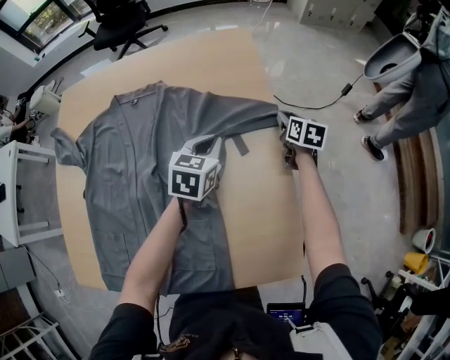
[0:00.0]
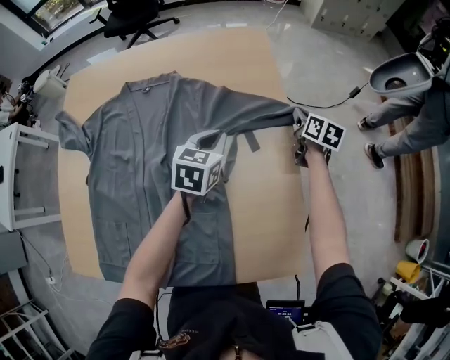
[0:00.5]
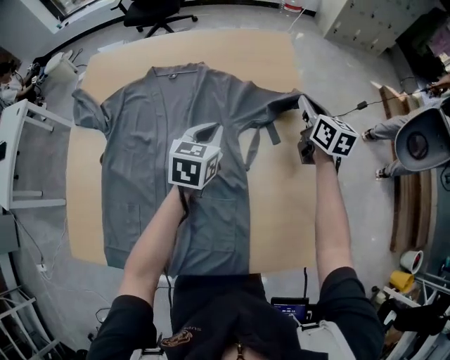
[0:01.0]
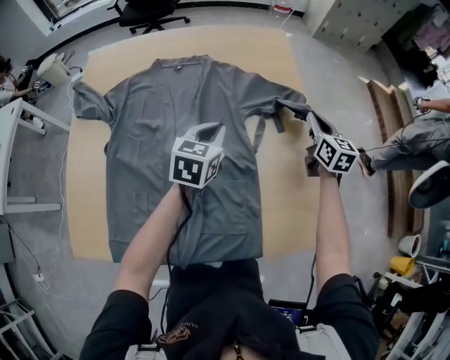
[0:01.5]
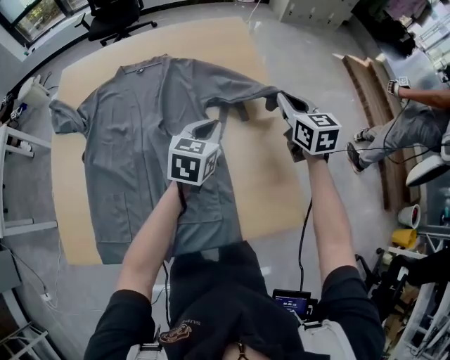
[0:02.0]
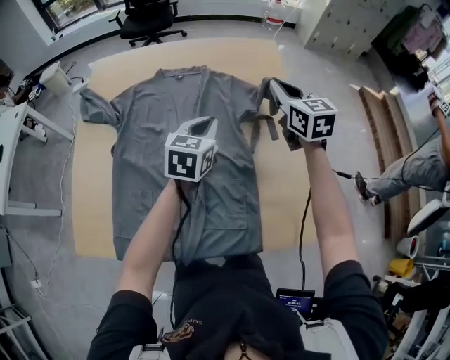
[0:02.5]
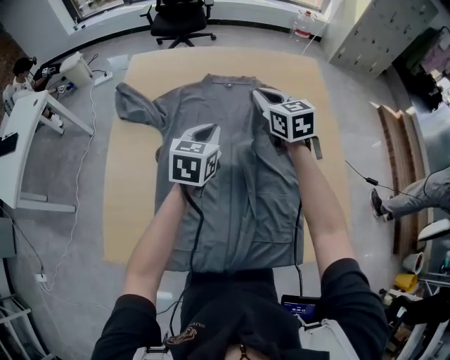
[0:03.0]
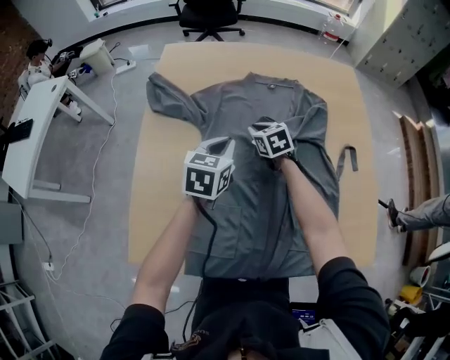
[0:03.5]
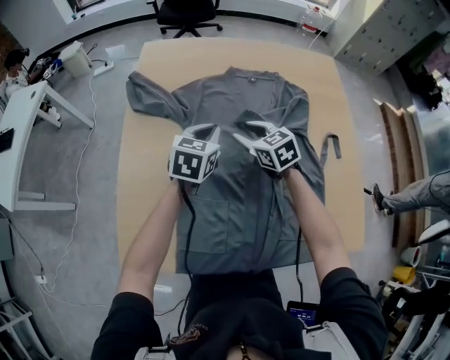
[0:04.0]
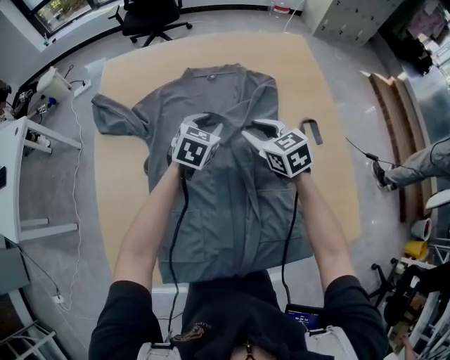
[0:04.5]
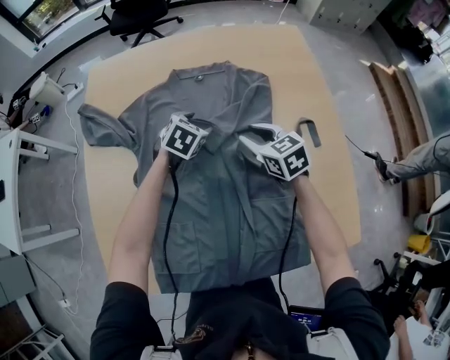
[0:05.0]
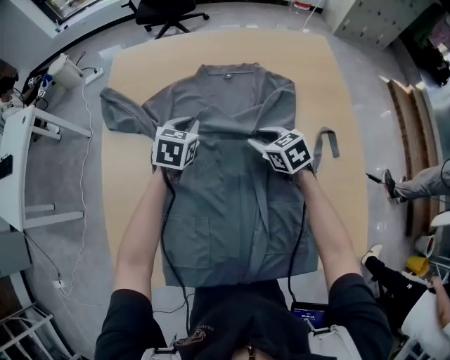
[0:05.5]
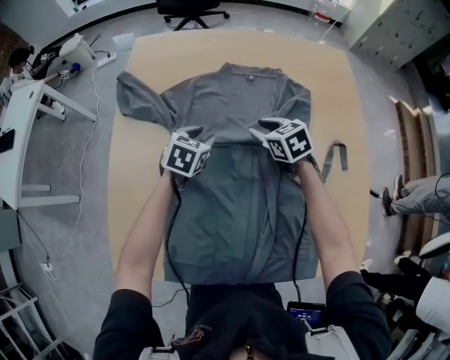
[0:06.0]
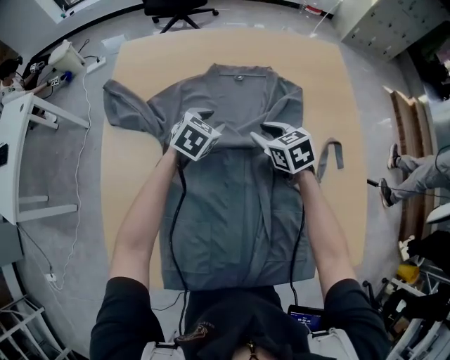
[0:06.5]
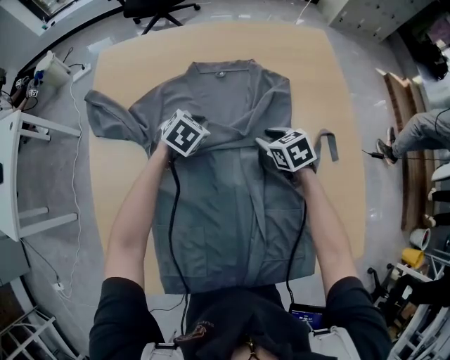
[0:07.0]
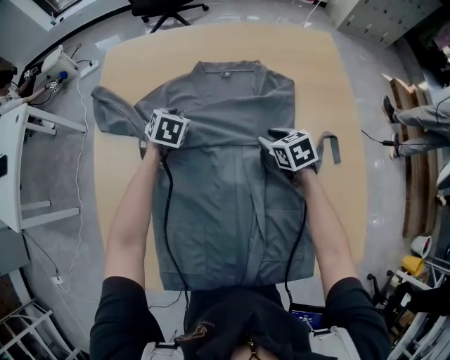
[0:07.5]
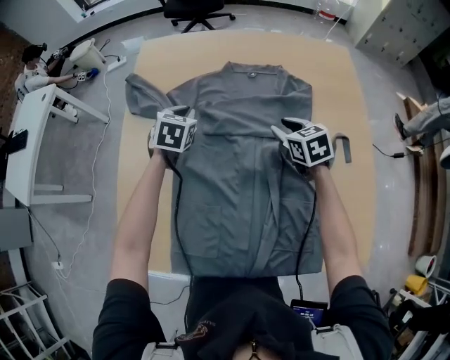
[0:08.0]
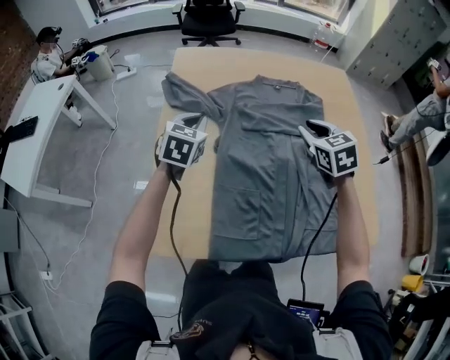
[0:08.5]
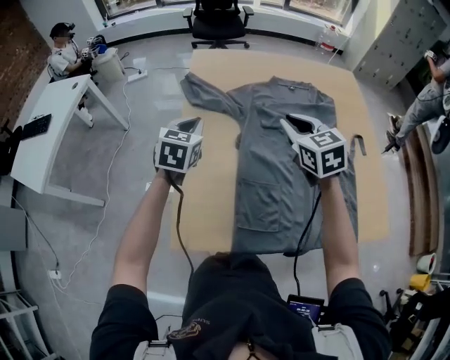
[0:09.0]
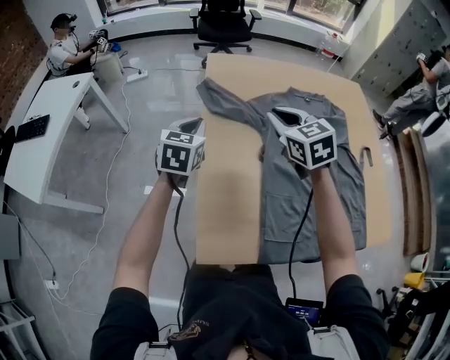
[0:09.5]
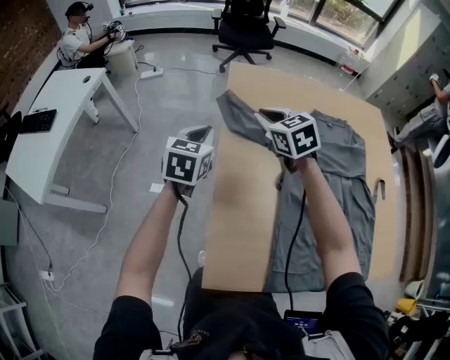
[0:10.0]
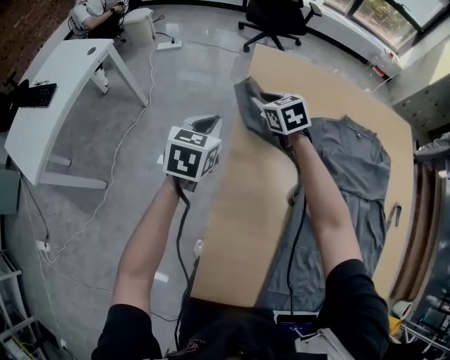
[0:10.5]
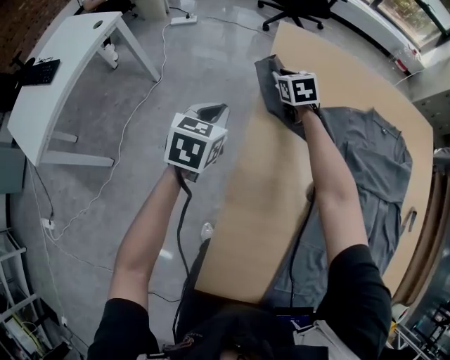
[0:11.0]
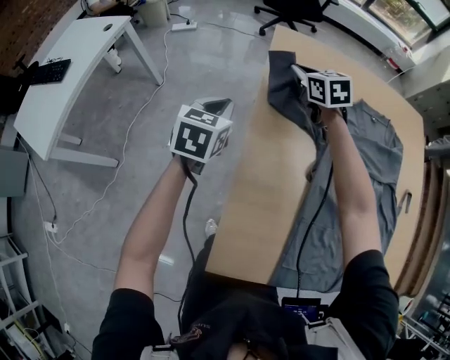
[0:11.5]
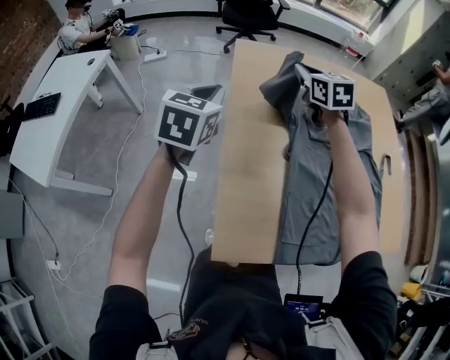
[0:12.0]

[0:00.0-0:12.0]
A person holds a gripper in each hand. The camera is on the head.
0:00.0 to 0:02.0: The right gripper travels upward and backward by roughly 25 cm, changes its angle by roughly 30 degrees, and closes up, while the left gripper shifts roughly 15 cm backward.
0:02.0 to 0:04.0: Both grippers move to the left, about 40 cm. The right gripper changes its angle by about 30 degrees, and opens its fingers.
0:04.0 to 0:06.0: The right gripper is displaced to the right and forward by approximately 10 cm. The left gripper heads downward, covering about 10 cm, travels to the right and back again, some 15 cm each way, and opens its fingers.
0:06.0 to 0:08.0: The right gripper shifts some 5 cm to the right; the left gripper heads upward, covering roughly 5 cm, and closes.
0:08.0 to 0:10.0: The two grippers go approximately 40 cm to the left. The right gripper closes. Meanwhile the left gripper swivels approximately 20 degrees.
0:10.0 to 0:12.0: The right gripper goes roughly 10 cm to the right, and travels downward and back again, some 20 cm each way, while the left gripper moves upward, approximately 10 cm.

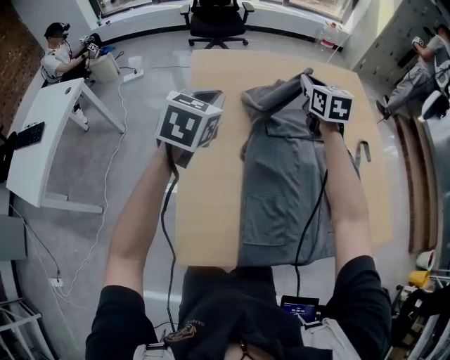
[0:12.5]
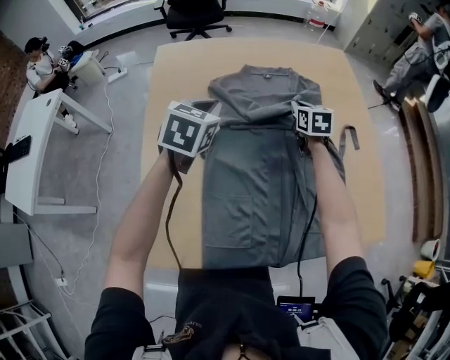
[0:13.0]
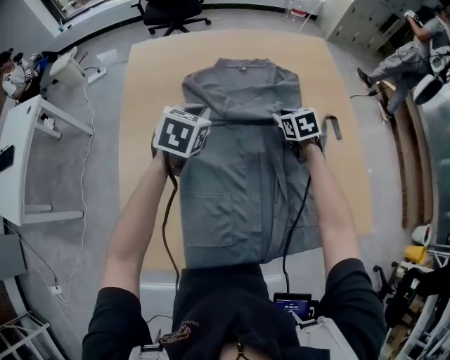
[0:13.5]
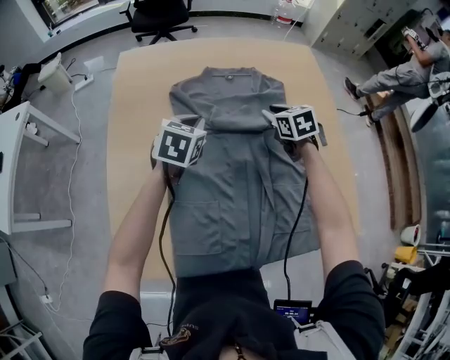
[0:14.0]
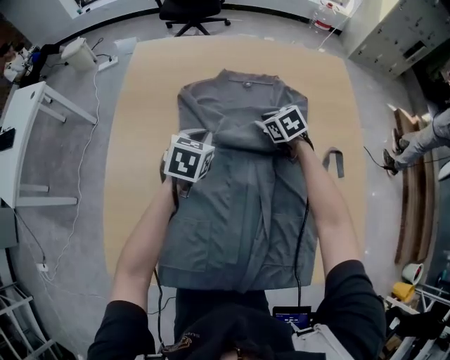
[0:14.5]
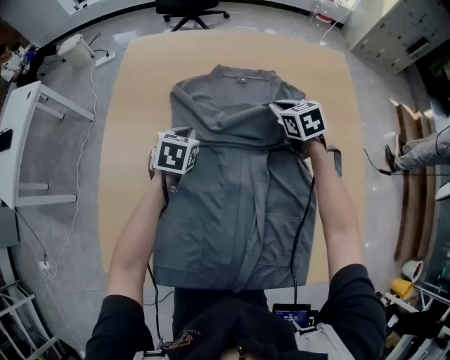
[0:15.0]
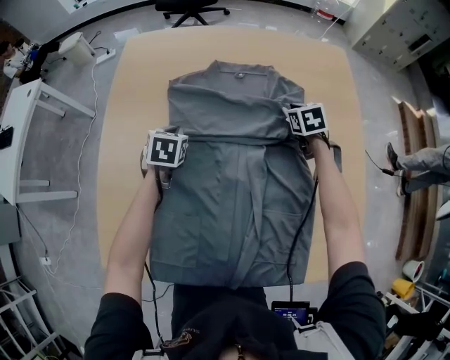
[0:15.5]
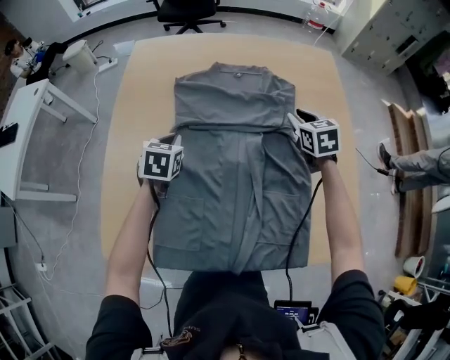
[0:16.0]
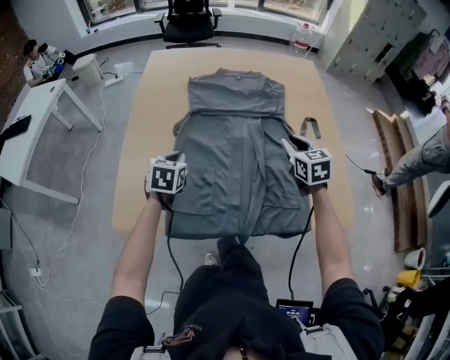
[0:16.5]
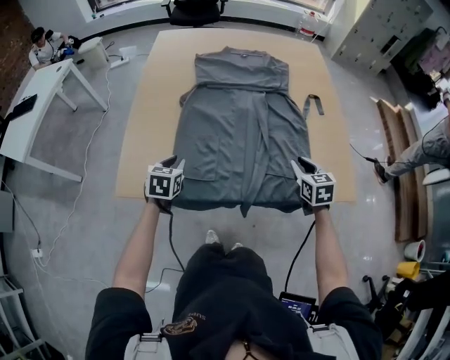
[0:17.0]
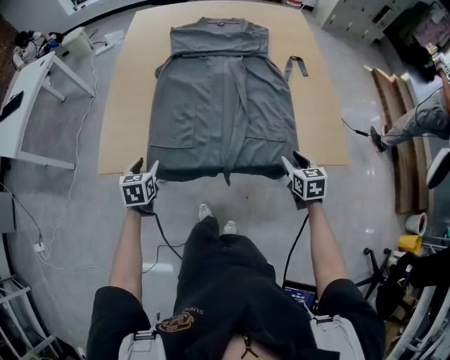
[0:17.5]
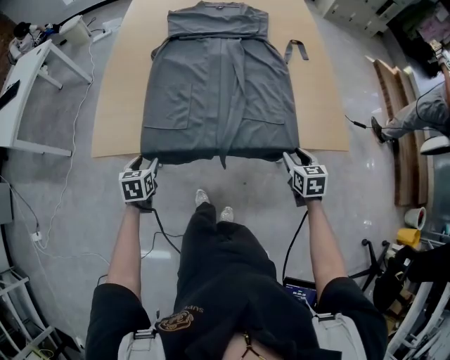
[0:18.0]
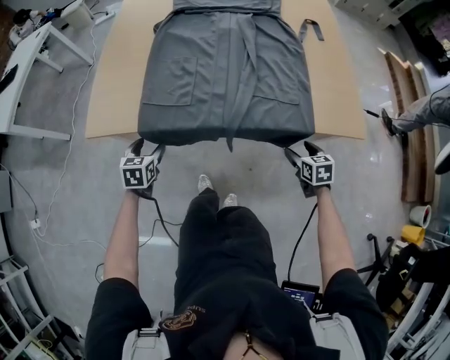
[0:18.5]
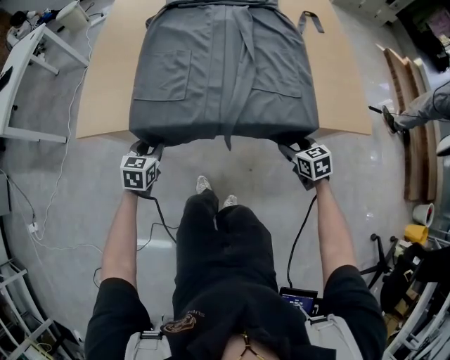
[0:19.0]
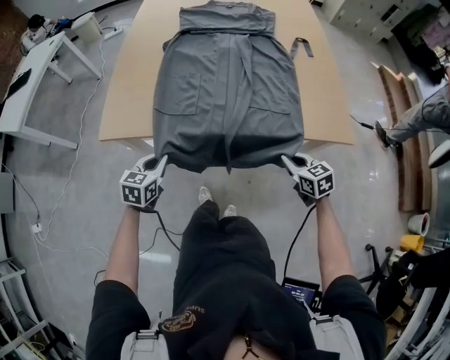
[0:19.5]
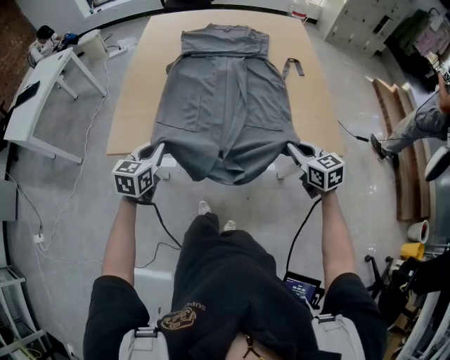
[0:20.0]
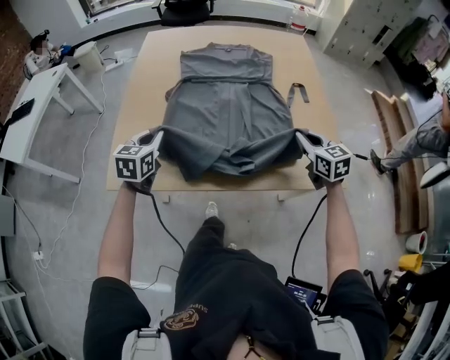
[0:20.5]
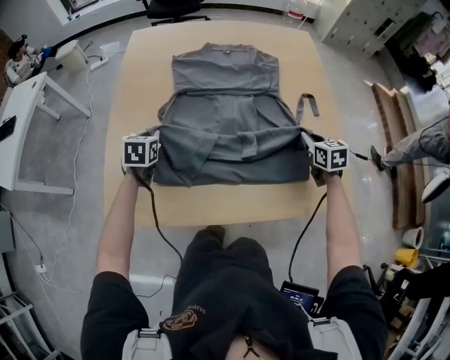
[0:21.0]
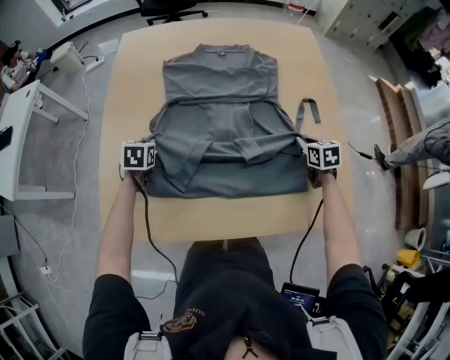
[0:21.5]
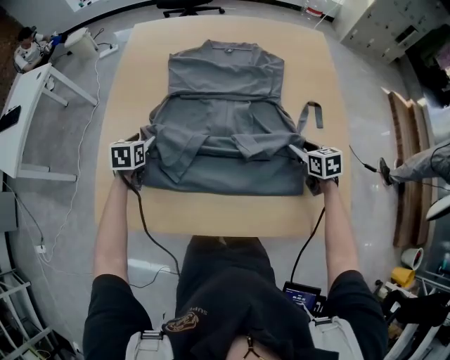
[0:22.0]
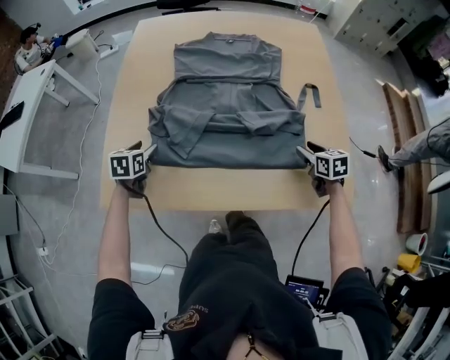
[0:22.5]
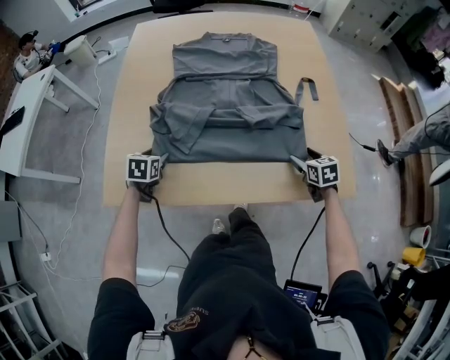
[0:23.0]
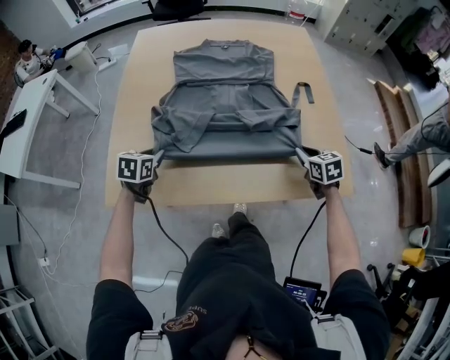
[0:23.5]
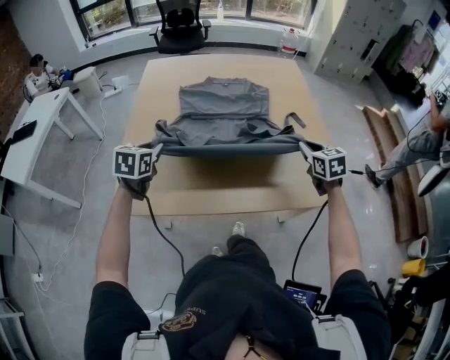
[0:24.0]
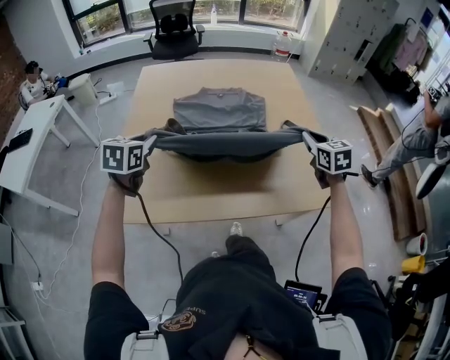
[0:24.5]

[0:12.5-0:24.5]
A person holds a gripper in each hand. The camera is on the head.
0:12.5 to 0:14.5: The left gripper travels downward and to the right by approximately 30 cm. Meanwhile the right gripper moves up and down over about 25 cm, changing direction 2 times, and tips its fingers downward by about 30 degrees.
0:14.5 to 0:16.5: The left gripper shifts approximately 25 cm backward and to the left. The right gripper shifts some 30 cm backward and upward, and swivels about 30 degrees.
0:16.5 to 0:18.5: The two grippers go approximately 35 cm backward and downward. The left gripper opens, while the right gripper changes its angle by some 20 degrees, and opens its fingers.
0:18.5 to 0:20.5: Both grippers move upward and forward, some 30 cm. The left gripper closes. The right gripper changes its angle by roughly 30 degrees, and closes its fingers.
0:20.5 to 0:22.5: The right gripper goes some 15 cm downward, forward and to the right, changes its angle by roughly 20 degrees, and opens up, while the left gripper is displaced downward, forward and to the left by approximately 15 cm, swivels roughly 20 degrees, and opens.
0:22.5 to 0:24.5: Both grippers move upward, roughly 20 cm. The right gripper turns by some 30 degrees, and closes its fingers. The left gripper turns by roughly 20 degrees, and closes its fingers.

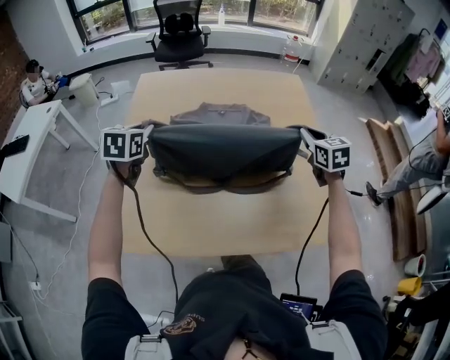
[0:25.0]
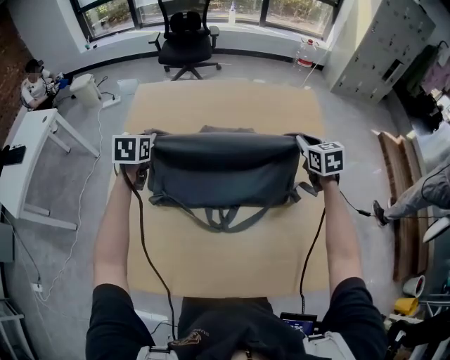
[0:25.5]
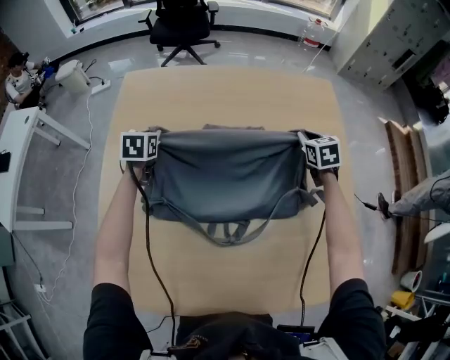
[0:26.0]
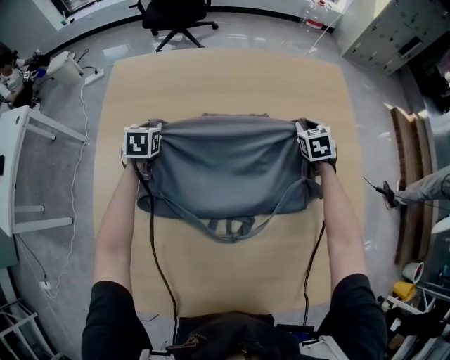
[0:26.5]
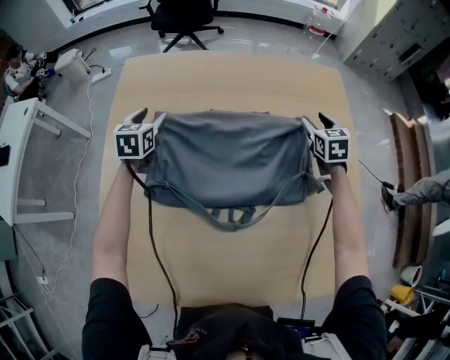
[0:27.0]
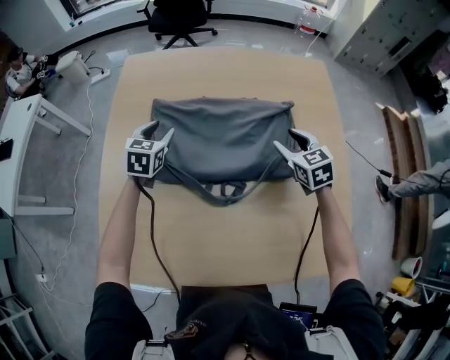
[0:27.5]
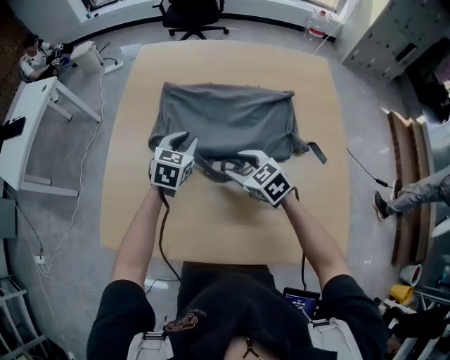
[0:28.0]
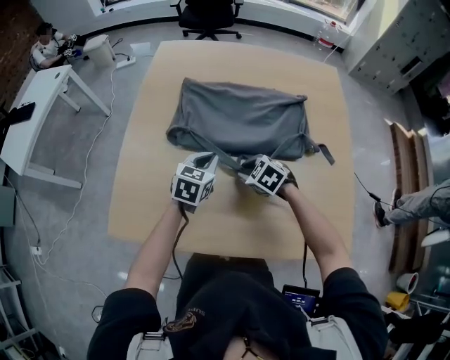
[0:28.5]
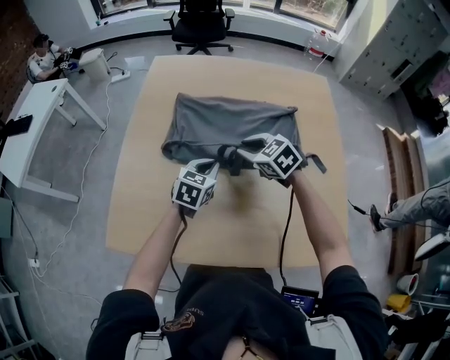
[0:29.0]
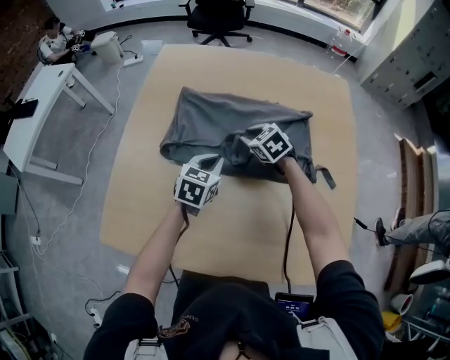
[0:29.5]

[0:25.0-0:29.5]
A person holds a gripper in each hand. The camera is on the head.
0:25.0 to 0:27.0: The two grippers go some 30 cm forward and downward. The right gripper opens up. The left gripper opens up.
0:27.0 to 0:29.5: The right gripper heads to the left, covering about 25 cm, turns by some 40 degrees, and closes up; the left gripper shifts roughly 30 cm backward and to the right, and closes.
